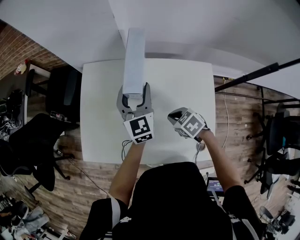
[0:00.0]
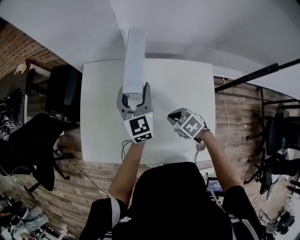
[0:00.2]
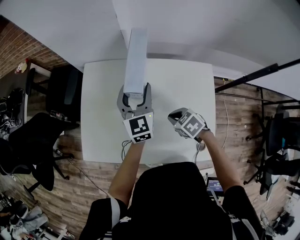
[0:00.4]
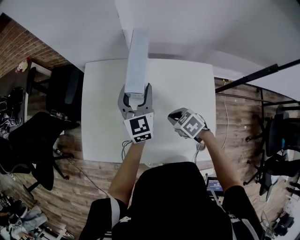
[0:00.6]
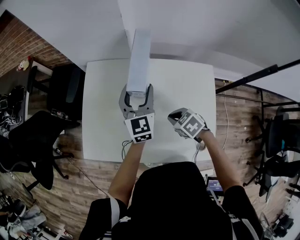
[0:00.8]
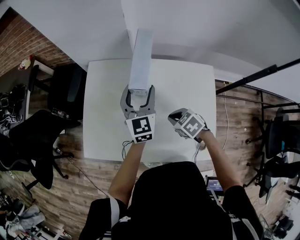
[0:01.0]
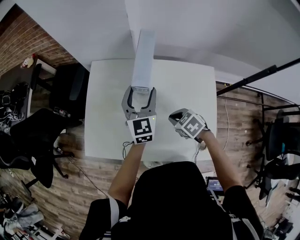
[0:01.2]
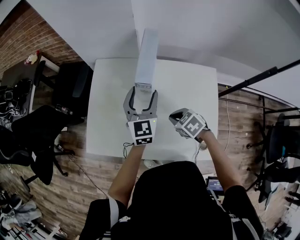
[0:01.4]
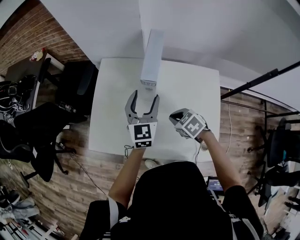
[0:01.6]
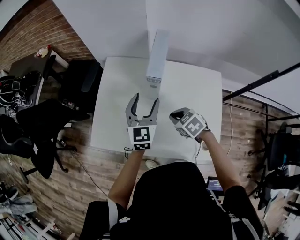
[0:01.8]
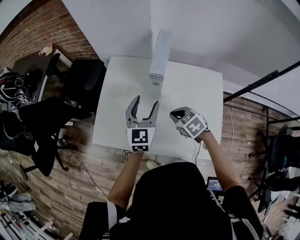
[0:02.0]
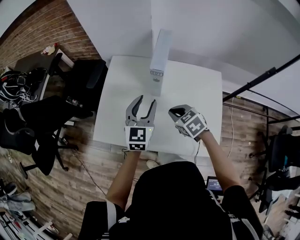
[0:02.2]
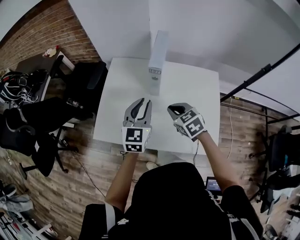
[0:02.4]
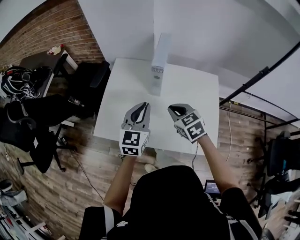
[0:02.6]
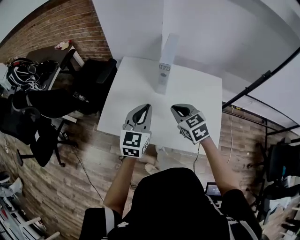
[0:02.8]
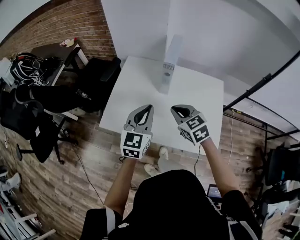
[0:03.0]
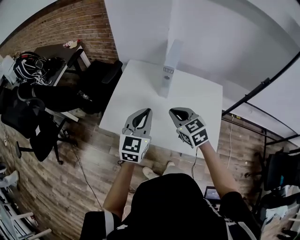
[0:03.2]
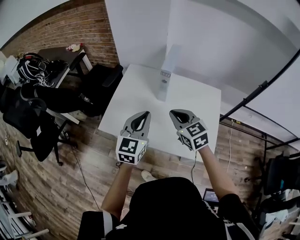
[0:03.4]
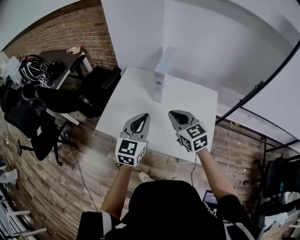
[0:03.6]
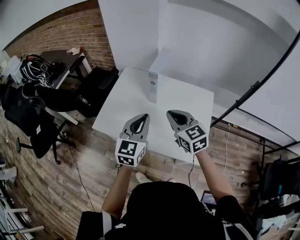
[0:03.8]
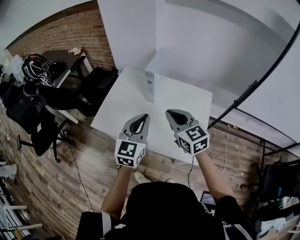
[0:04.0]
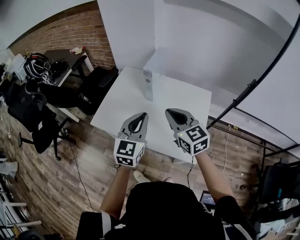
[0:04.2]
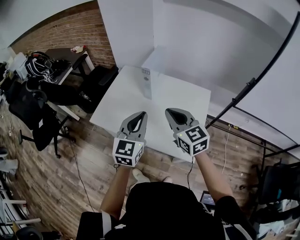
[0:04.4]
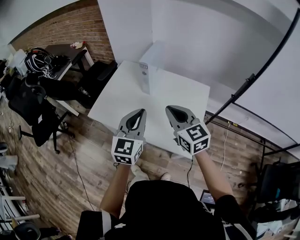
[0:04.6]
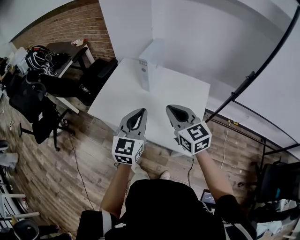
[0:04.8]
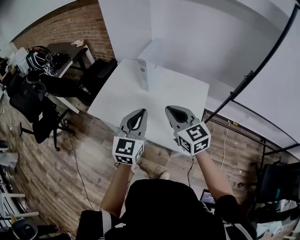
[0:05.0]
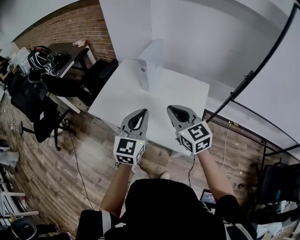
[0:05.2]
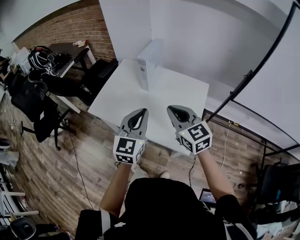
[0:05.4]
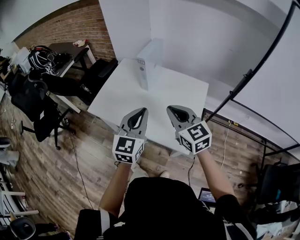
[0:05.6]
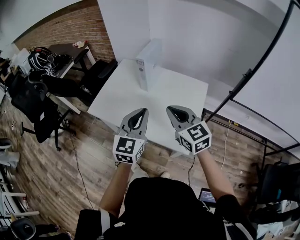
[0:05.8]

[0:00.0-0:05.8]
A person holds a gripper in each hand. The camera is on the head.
0:00.0 to 0:01.4: The left gripper changes place by roughly 5 cm.
0:01.4 to 0:02.8: The left gripper moves backward and to the left, some 20 cm, and closes up. Meanwhile the right gripper travels upward and to the left by some 15 cm, and turns by some 30 degrees.
0:02.8 to 0:04.4: The right gripper shifts approximately 20 cm upward, backward and to the right, and changes its angle by some 20 degrees. The left gripper heads backward, to the right and upward, covering some 20 cm.
0:04.4 to 0:05.8: The two grippers go approximately 5 cm backward.

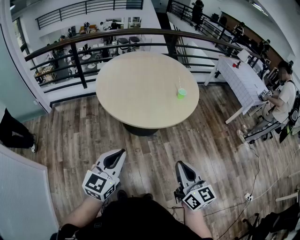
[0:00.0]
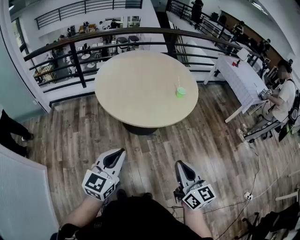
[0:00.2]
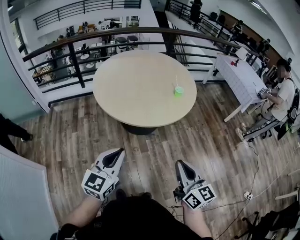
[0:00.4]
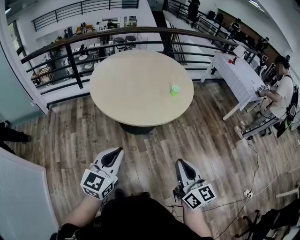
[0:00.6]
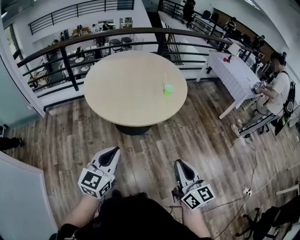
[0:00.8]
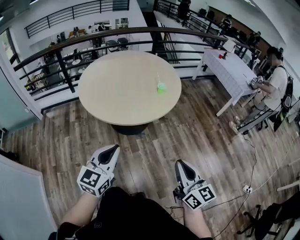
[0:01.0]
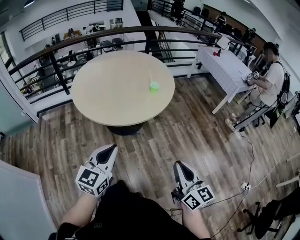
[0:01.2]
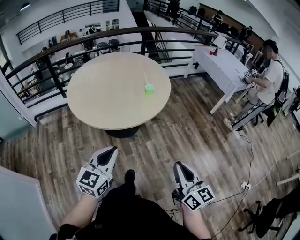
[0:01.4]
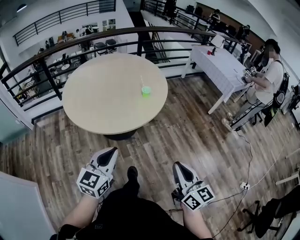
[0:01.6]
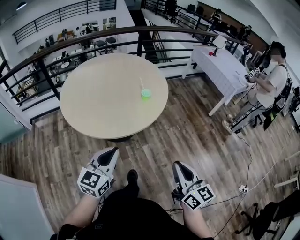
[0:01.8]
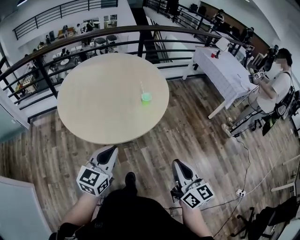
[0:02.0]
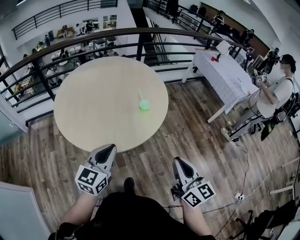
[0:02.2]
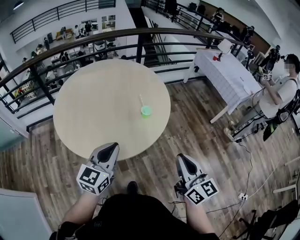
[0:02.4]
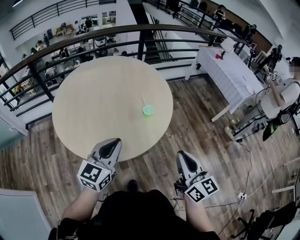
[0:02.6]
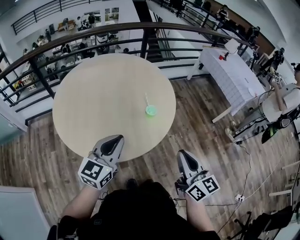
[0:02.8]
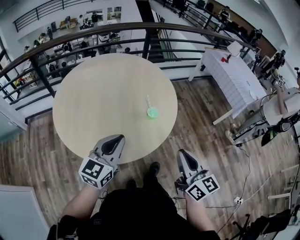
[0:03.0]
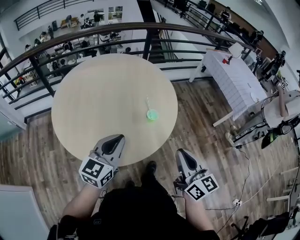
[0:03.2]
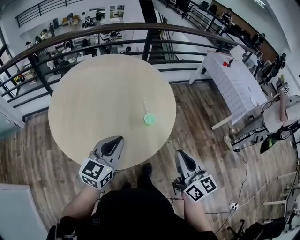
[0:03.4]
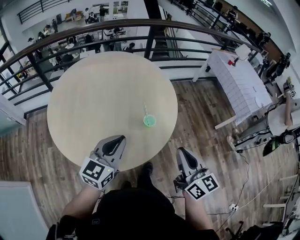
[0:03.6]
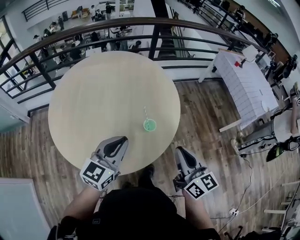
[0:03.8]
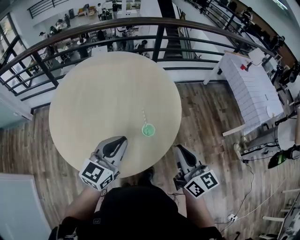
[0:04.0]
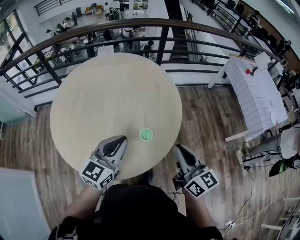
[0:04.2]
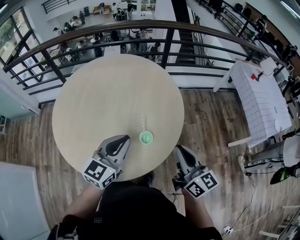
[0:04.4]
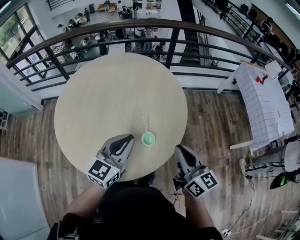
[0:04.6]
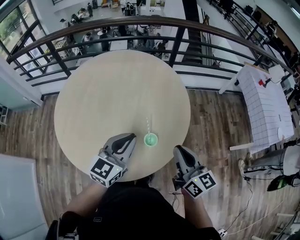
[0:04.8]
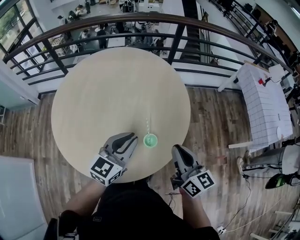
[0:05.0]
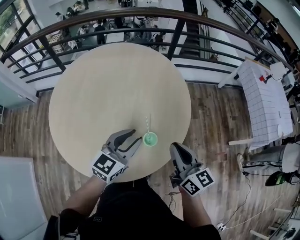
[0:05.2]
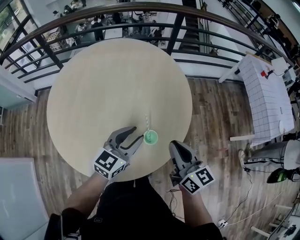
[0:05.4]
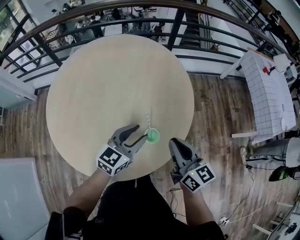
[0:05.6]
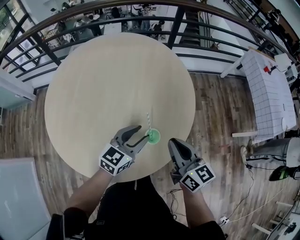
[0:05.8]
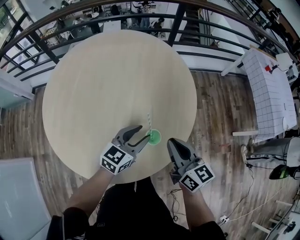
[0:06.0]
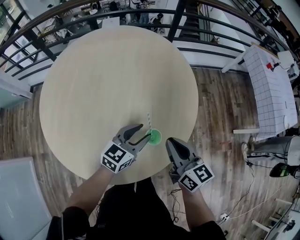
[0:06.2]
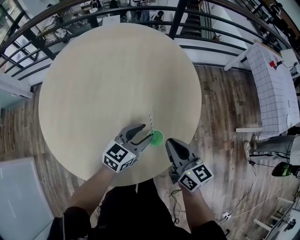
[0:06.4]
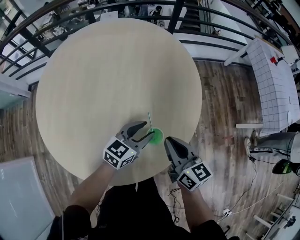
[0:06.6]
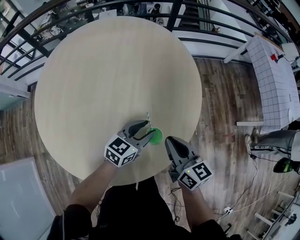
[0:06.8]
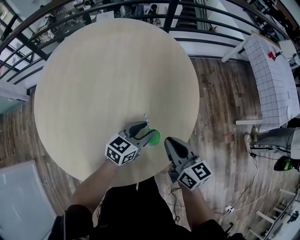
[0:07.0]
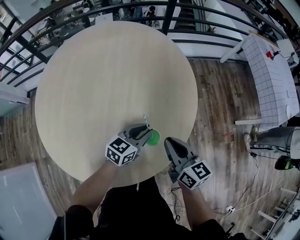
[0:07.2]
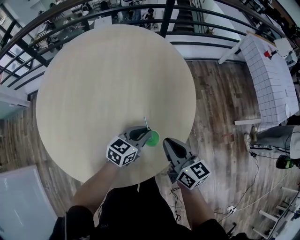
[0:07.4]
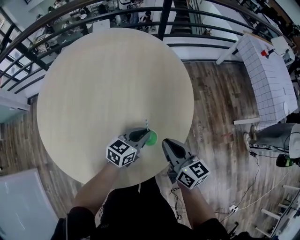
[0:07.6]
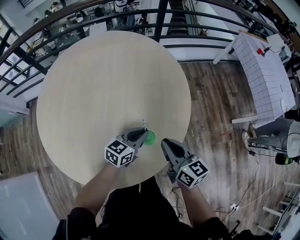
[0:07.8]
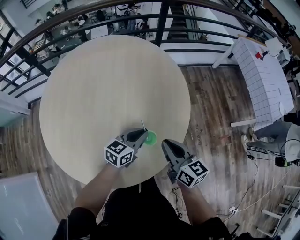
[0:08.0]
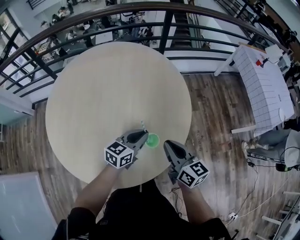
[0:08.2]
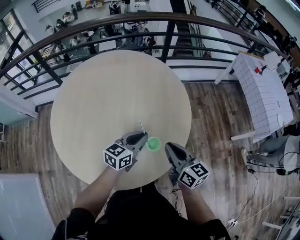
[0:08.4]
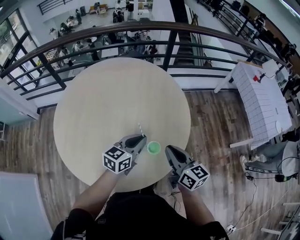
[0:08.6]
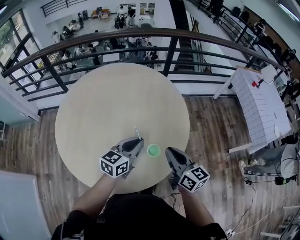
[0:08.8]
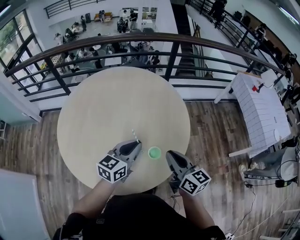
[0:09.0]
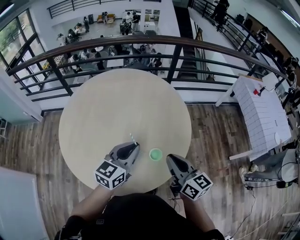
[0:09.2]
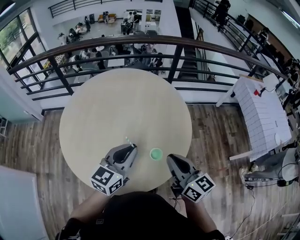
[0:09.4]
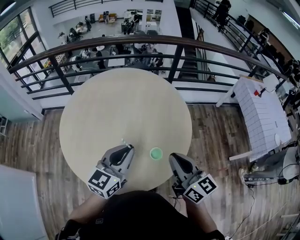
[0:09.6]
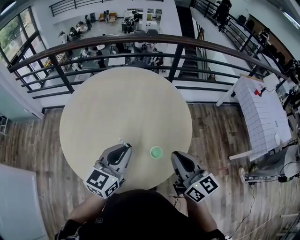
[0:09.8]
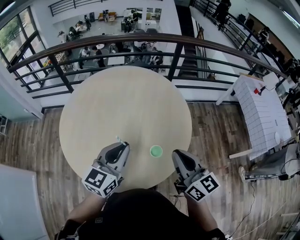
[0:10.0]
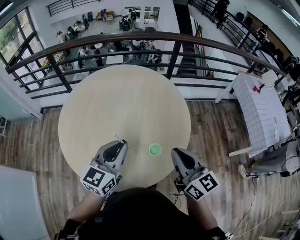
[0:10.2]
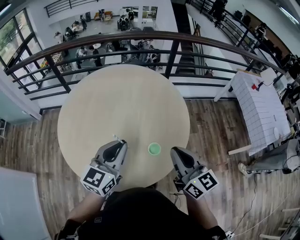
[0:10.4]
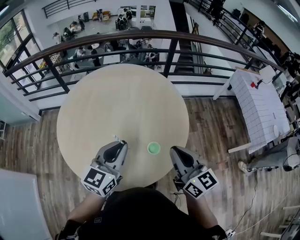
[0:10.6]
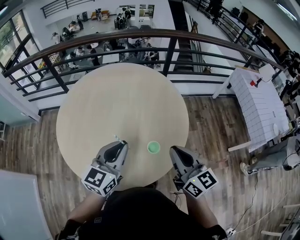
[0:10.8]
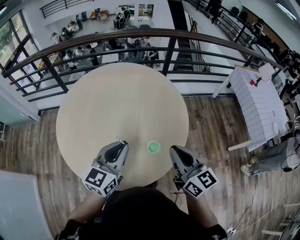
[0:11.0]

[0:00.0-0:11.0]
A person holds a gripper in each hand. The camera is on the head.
0:00.0 to 0:01.6: The left gripper is displaced to the right and forward by about 20 cm, while the right gripper travels to the right by about 20 cm.
0:01.6 to 0:03.2: The two grippers go about 35 cm forward.
0:03.2 to 0:04.8: The left gripper goes some 20 cm forward and to the right. Meanwhile the right gripper heads forward, covering some 25 cm.
0:04.8 to 0:06.2: The right gripper is displaced downward, forward and to the left by about 15 cm. Meanwhile the left gripper shifts some 20 cm downward, and opens.
0:06.2 to 0:07.8: The left gripper shifts by about 5 cm, and closes its fingers.
0:07.8 to 0:09.4: The right gripper moves upward, about 15 cm, while the left gripper is displaced upward and to the left by approximately 25 cm, and turns by about 30 degrees.
0:09.4 to 0:11.0: The grippers make only small movements.

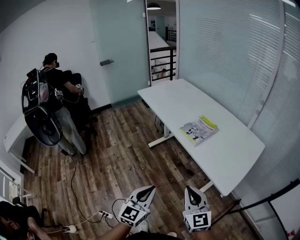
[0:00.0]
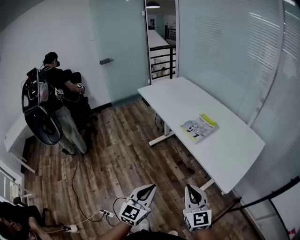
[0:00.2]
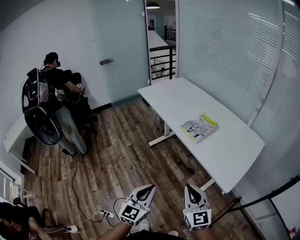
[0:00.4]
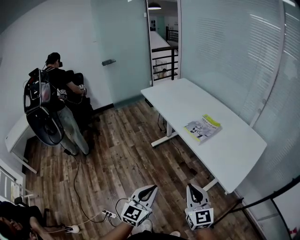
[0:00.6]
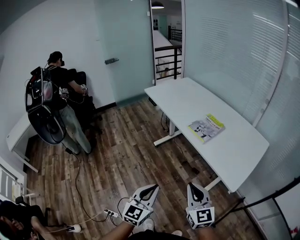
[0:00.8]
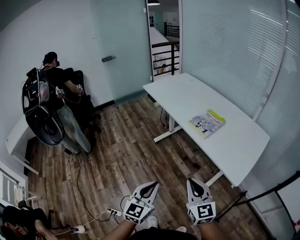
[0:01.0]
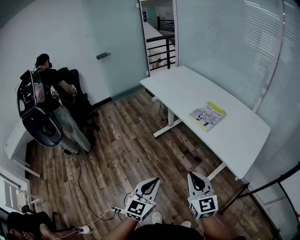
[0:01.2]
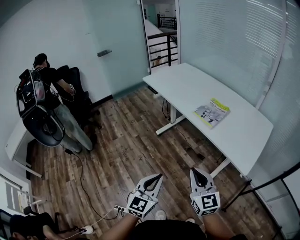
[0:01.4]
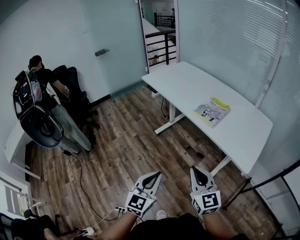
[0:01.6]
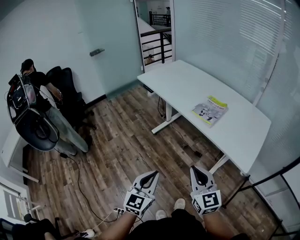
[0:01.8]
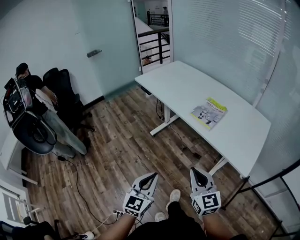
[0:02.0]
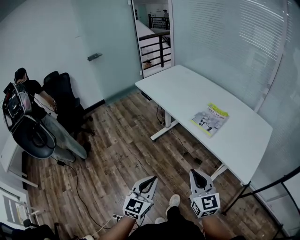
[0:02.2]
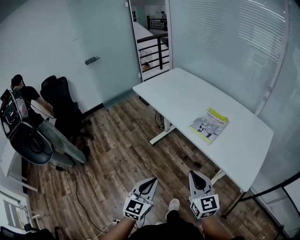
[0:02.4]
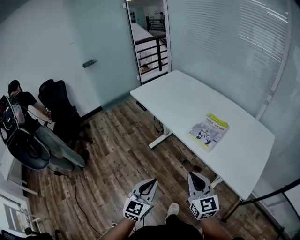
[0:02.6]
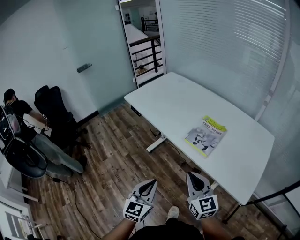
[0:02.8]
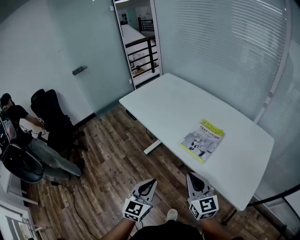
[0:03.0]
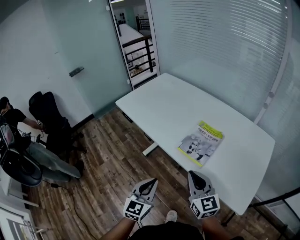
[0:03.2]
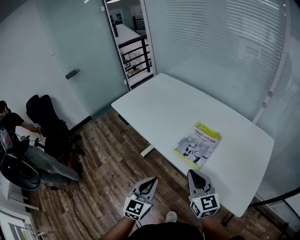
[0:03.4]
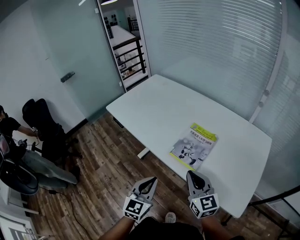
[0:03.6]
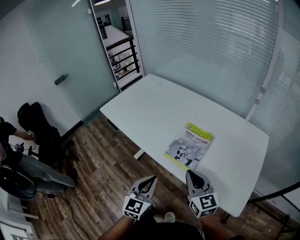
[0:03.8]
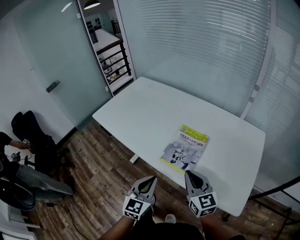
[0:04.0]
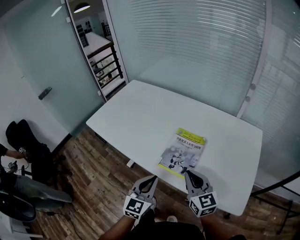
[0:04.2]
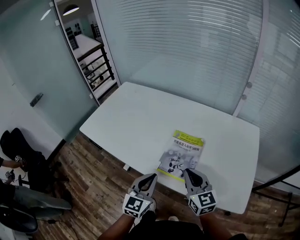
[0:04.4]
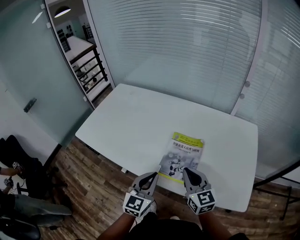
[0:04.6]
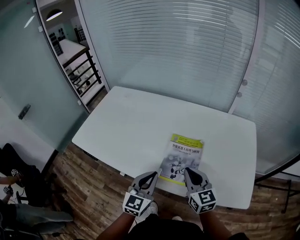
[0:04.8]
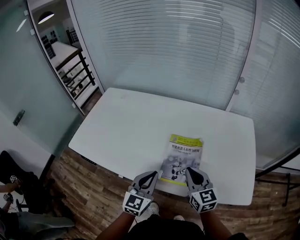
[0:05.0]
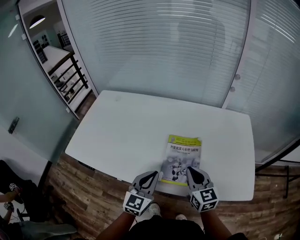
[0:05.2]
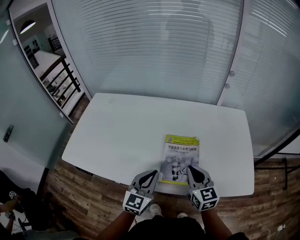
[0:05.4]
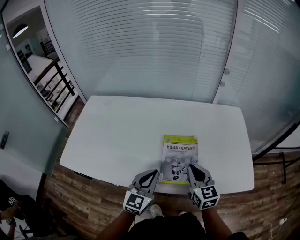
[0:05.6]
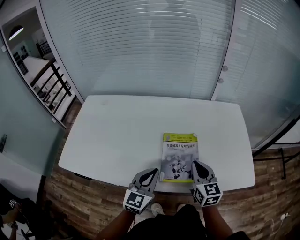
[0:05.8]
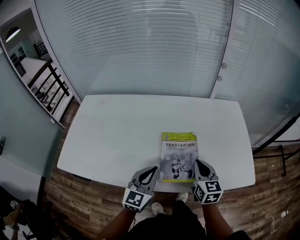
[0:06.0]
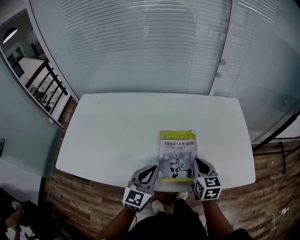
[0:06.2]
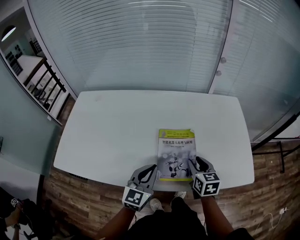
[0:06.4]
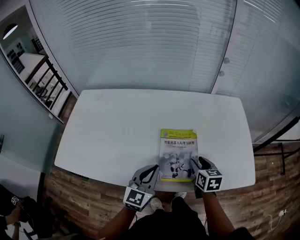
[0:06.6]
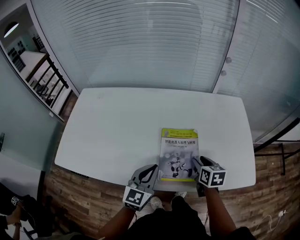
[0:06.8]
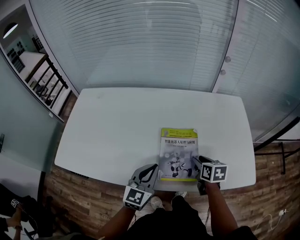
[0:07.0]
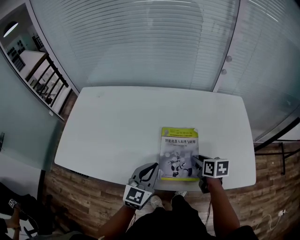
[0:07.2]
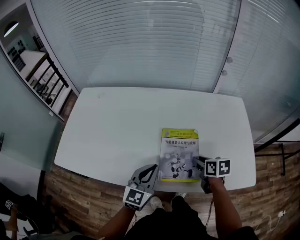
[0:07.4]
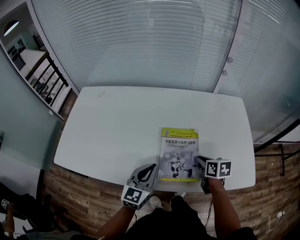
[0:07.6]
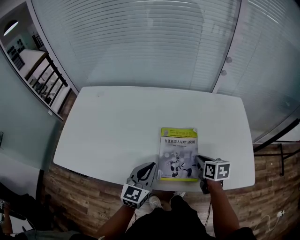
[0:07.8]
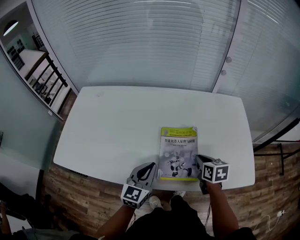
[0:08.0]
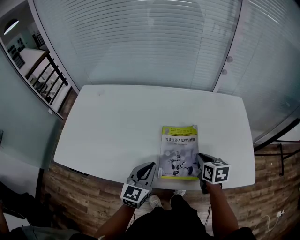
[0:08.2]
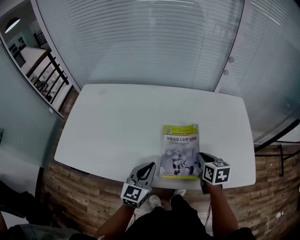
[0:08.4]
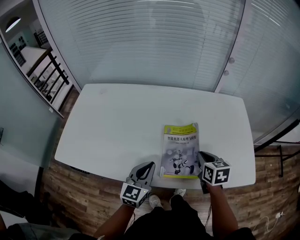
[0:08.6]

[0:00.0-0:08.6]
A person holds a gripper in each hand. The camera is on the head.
0:00.0 to 0:01.4: The grippers both shift to the left by about 10 cm.
0:01.4 to 0:02.8: Both grippers travel together forward, approximately 20 cm.
0:02.8 to 0:04.4: The left gripper travels forward by approximately 25 cm, and turns by some 20 degrees. The right gripper moves forward and to the right, roughly 20 cm.
0:04.4 to 0:05.8: The left gripper ends up about 10 cm from where it was, and swivels about 30 degrees; the right gripper rotates roughly 30 degrees.
0:05.8 to 0:07.2: The right gripper heads downward, covering some 10 cm, tips its fingers downward by some 30 degrees, and opens its fingers.
0:07.2 to 0:08.6: The right gripper is displaced upward by some 5 cm, and closes its fingers.
